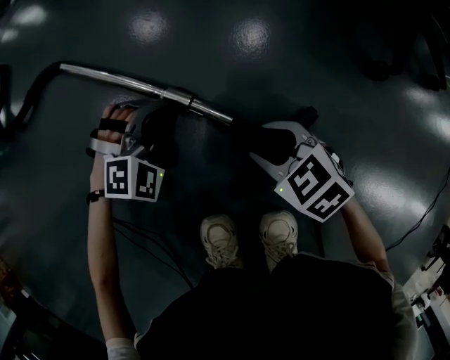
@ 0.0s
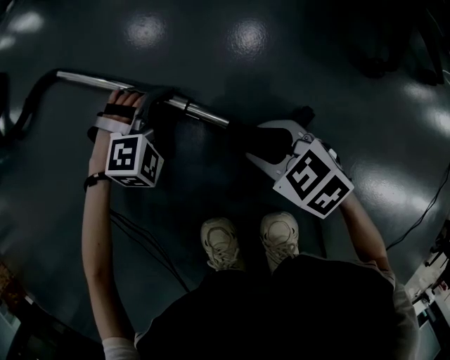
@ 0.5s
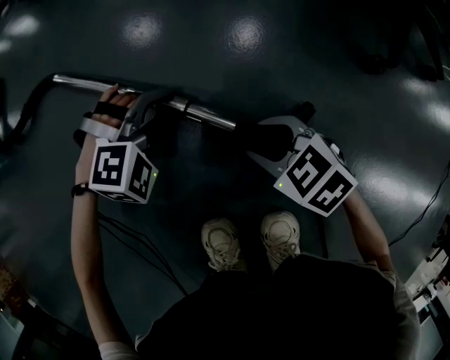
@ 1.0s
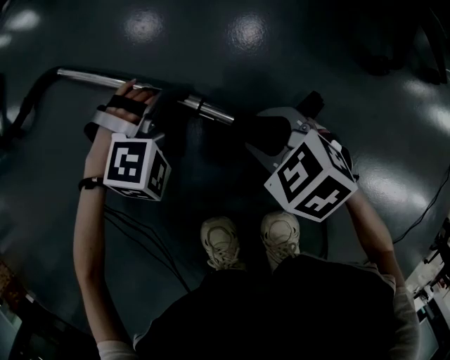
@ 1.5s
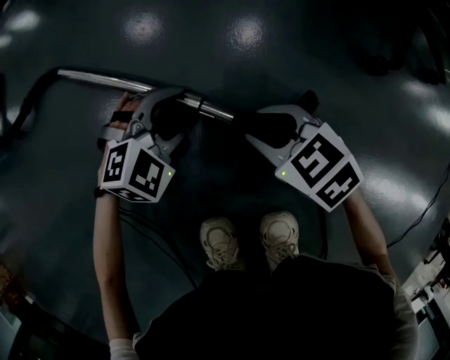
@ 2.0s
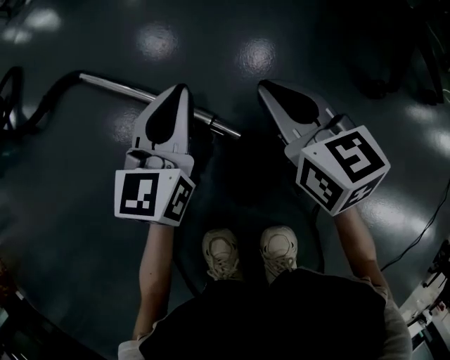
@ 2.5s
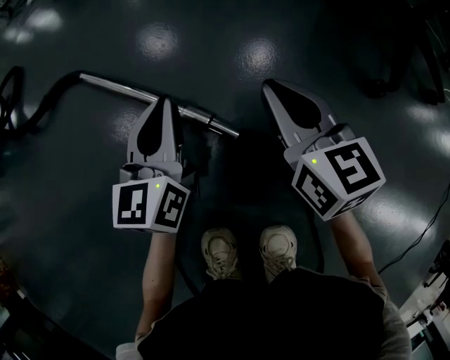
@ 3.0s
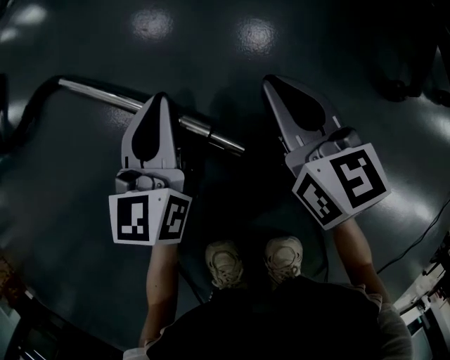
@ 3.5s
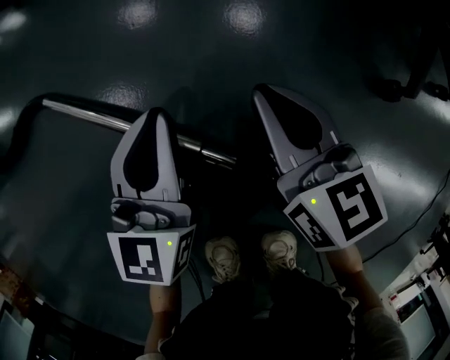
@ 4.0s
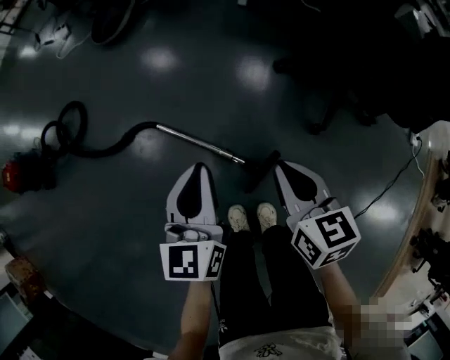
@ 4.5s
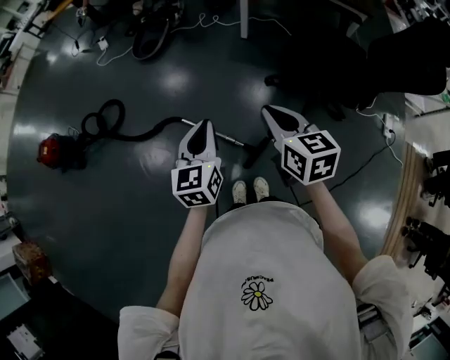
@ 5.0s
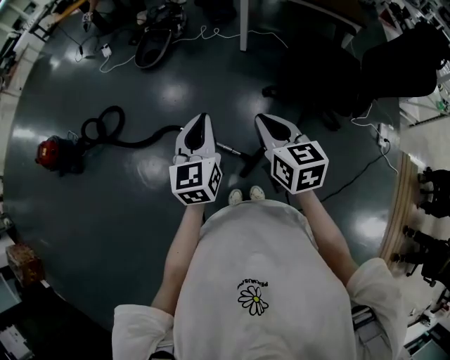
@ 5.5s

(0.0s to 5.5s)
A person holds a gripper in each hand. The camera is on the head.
0.0s - 2.0s: The left gripper opens its fingers.
2.0s - 3.5s: The left gripper goes about 10 cm upward and forward, angles its fingers upward, by roughly 30 degrees, and closes up, while the right gripper shifts about 15 cm forward and upward, rotates approximately 40 degrees, and closes its fingers.
3.5s - 5.5s: The two grippers go approximately 80 cm upward.

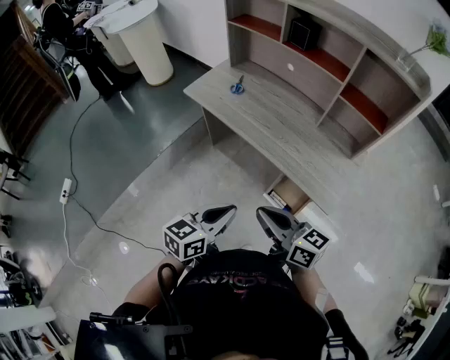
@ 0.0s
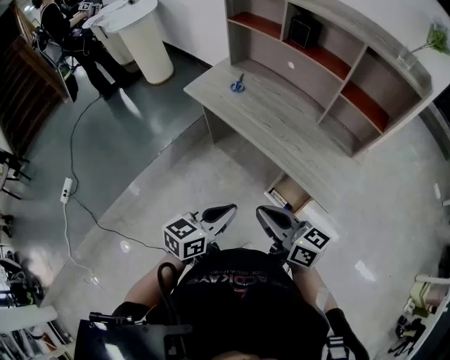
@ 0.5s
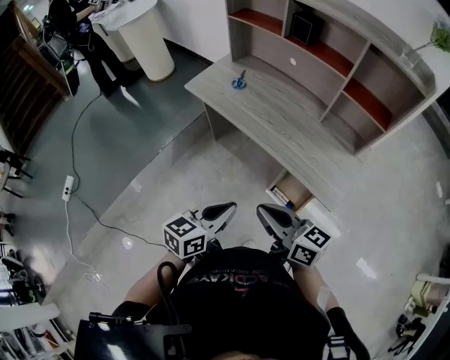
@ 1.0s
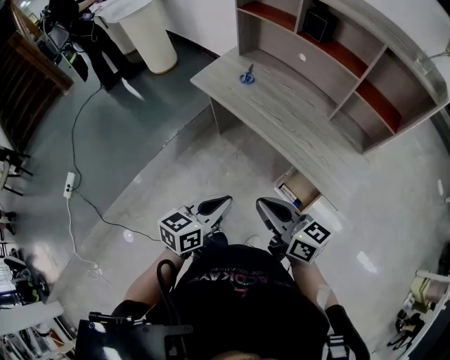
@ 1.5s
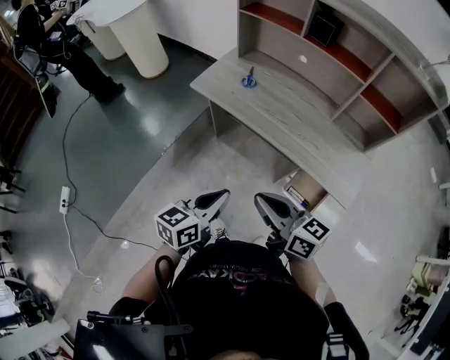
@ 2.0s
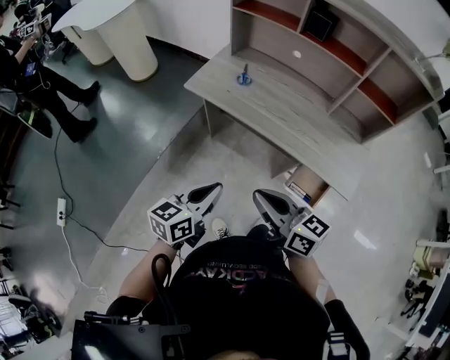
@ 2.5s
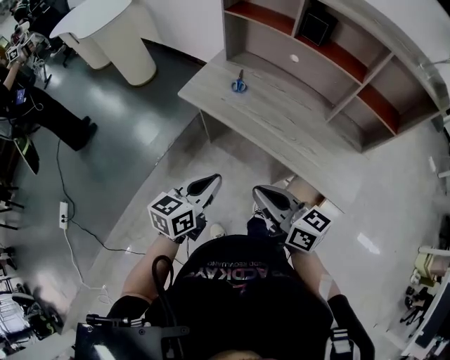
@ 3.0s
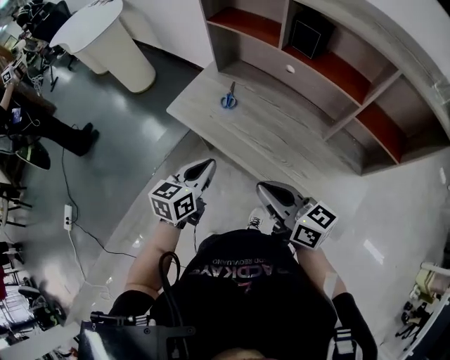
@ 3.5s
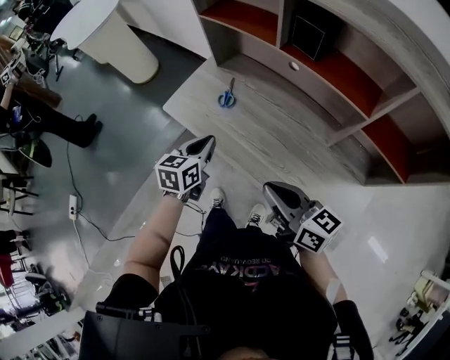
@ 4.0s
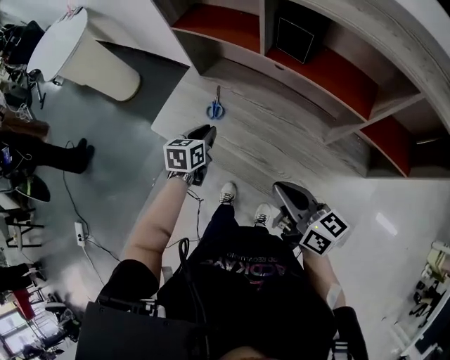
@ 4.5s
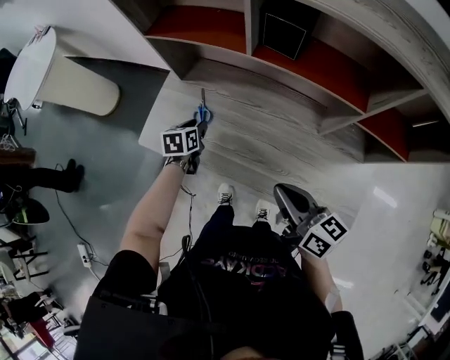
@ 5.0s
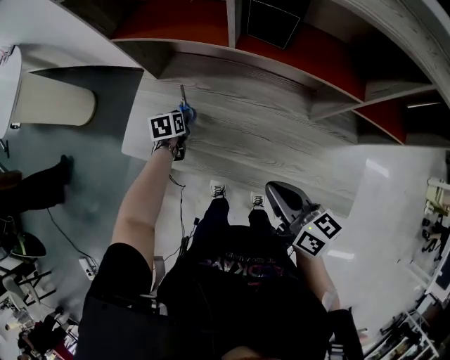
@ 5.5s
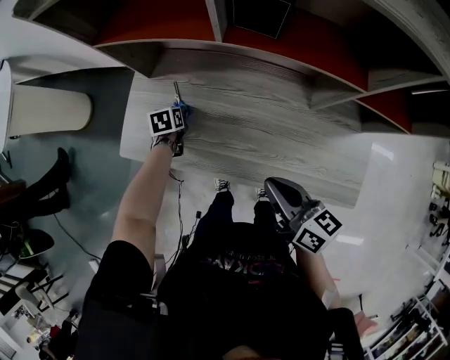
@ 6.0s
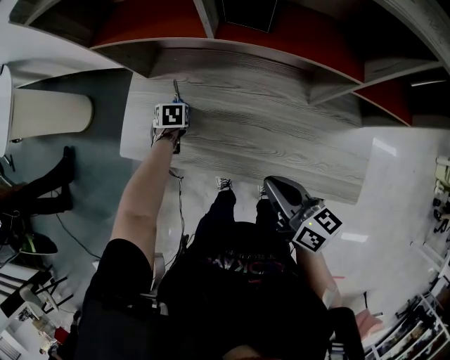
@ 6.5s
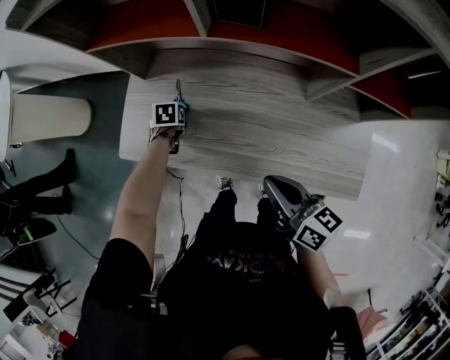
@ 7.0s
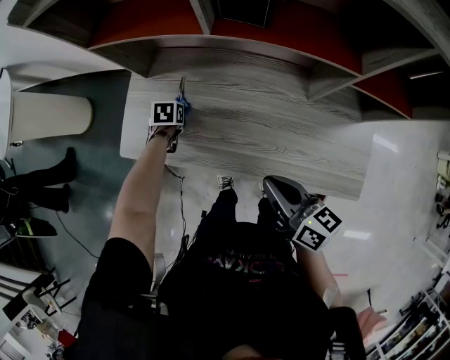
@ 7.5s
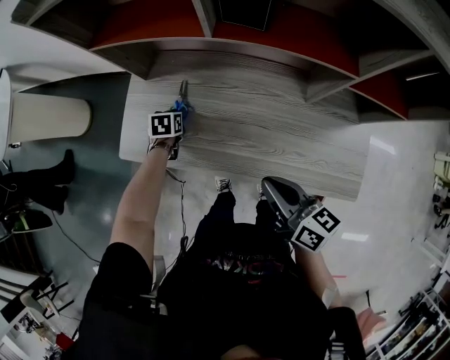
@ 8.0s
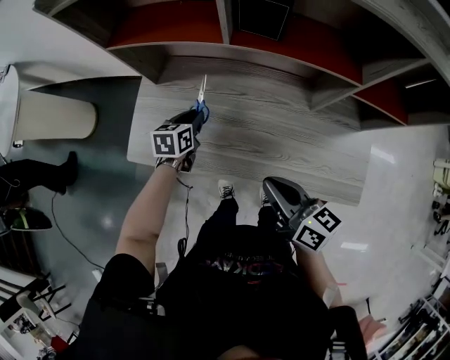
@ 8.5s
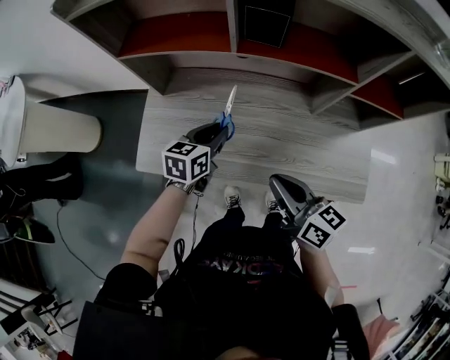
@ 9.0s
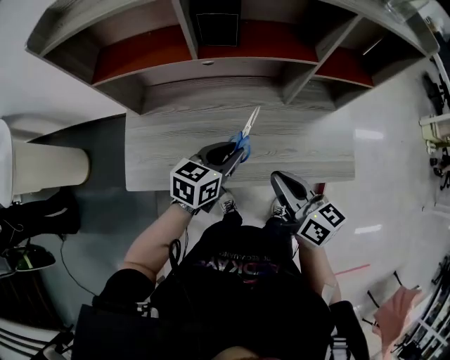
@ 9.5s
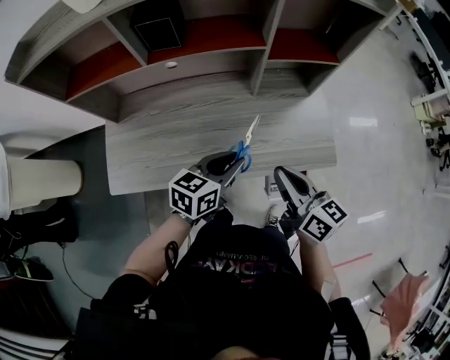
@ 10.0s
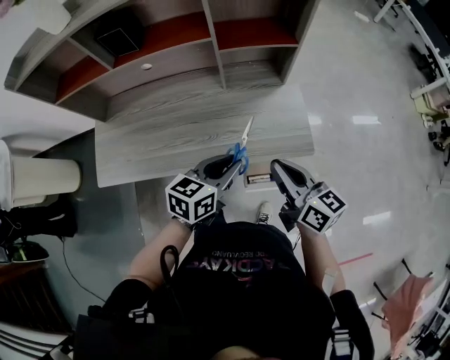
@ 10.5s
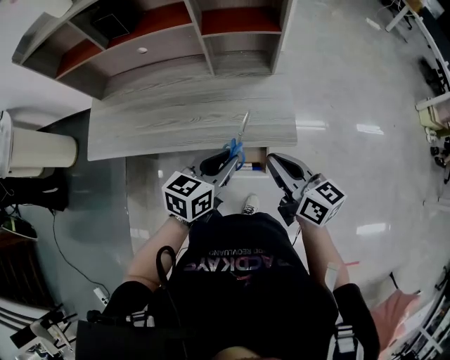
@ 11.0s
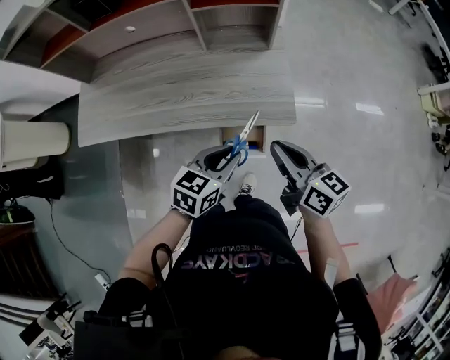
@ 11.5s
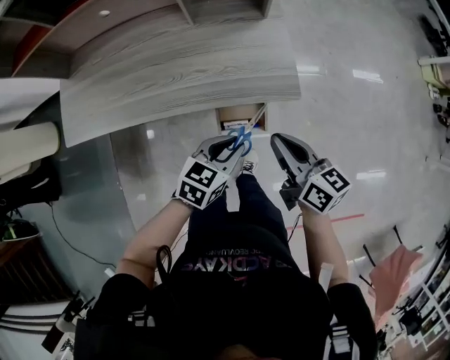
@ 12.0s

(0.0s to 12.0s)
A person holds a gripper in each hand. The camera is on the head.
0.0s - 2.0s: The two grippers go some 10 cm to the left.
2.0s - 4.0s: The left gripper shifts roughly 25 cm forward, and rotates approximately 20 degrees; the right gripper goes about 20 cm forward and to the right.
4.0s - 6.0s: The left gripper is displaced forward and downward by roughly 25 cm, tips its fingers downward by roughly 30 degrees, and opens; the right gripper changes its angle by some 30 degrees.
6.0s - 8.0s: The grippers stay close to where they were, moving slightly.
8.0s - 10.0s: The right gripper shifts by about 10 cm, and changes its angle by approximately 20 degrees, while the left gripper changes place by roughly 40 cm, and angles its fingers upward, by roughly 40 degrees.
10.0s - 12.0s: The left gripper is displaced to the right, backward and downward by approximately 20 cm, while the right gripper goes approximately 15 cm to the right and backward.

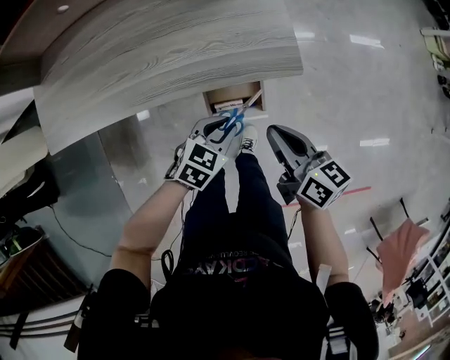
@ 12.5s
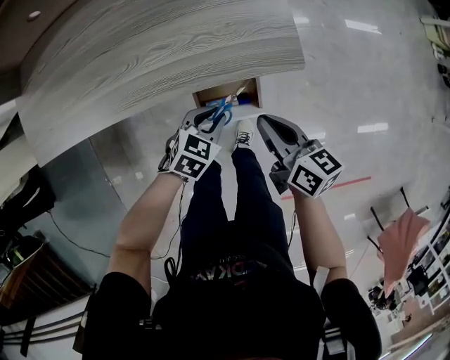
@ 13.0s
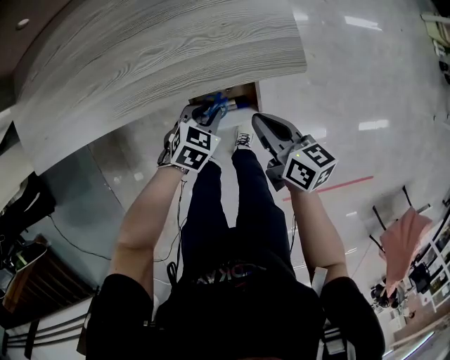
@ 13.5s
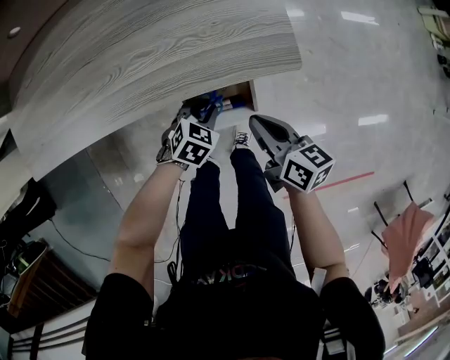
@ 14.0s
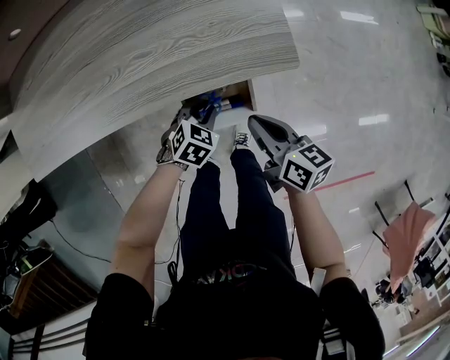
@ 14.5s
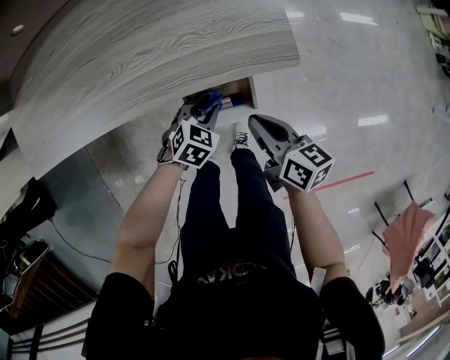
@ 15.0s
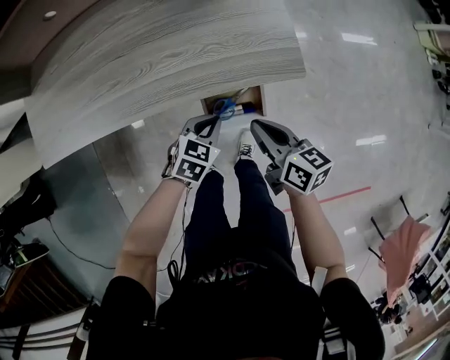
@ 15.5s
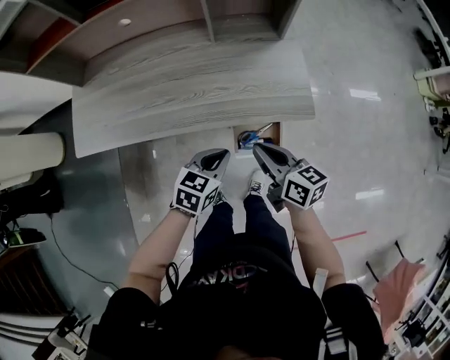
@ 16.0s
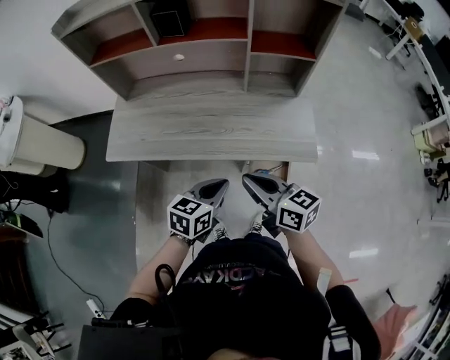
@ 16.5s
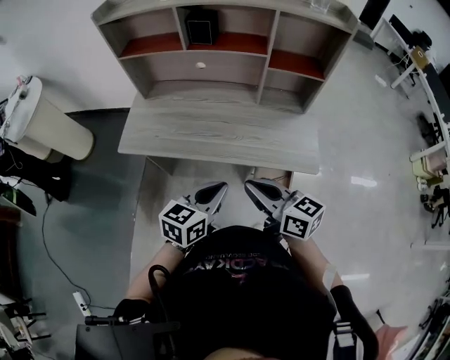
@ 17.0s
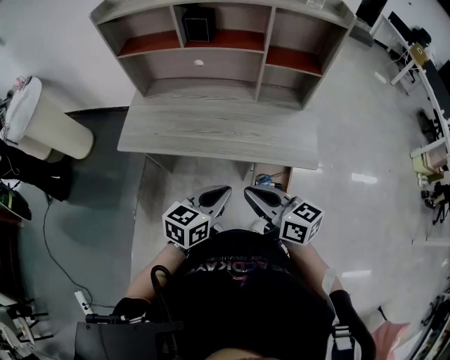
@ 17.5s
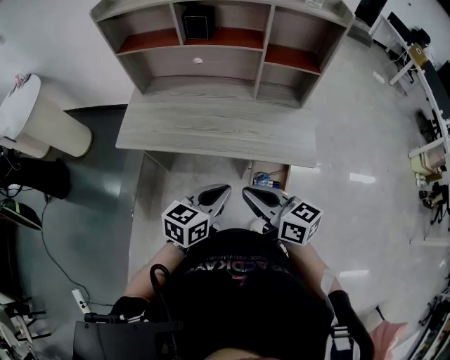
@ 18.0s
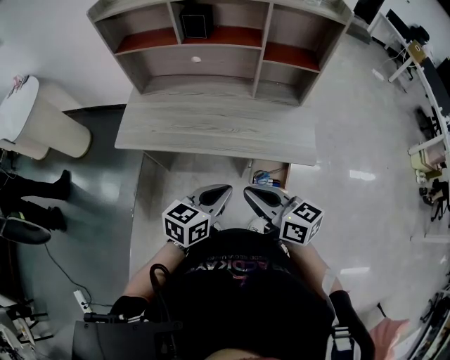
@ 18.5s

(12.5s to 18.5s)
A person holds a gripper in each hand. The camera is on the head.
12.5s - 14.5s: Both grippers move downward, roughly 10 cm.
14.5s - 16.5s: The left gripper moves upward, about 25 cm, and angles its fingers upward, by roughly 30 degrees. Meanwhile the right gripper goes approximately 20 cm upward and to the left, and rotates roughly 30 degrees.
16.5s - 18.5s: The right gripper goes some 5 cm backward, while the left gripper goes some 5 cm upward.

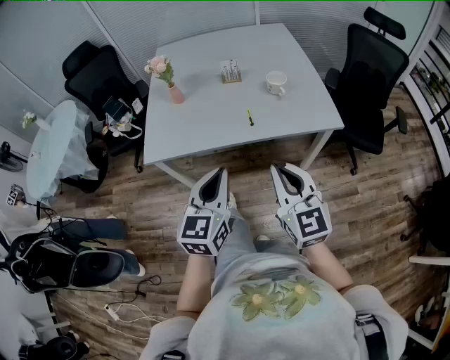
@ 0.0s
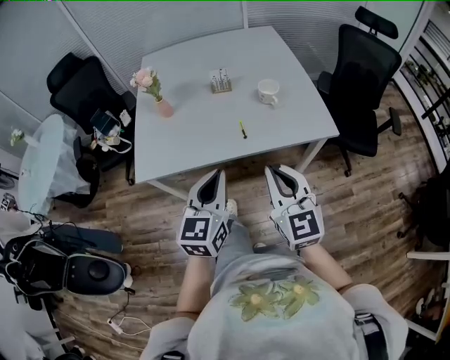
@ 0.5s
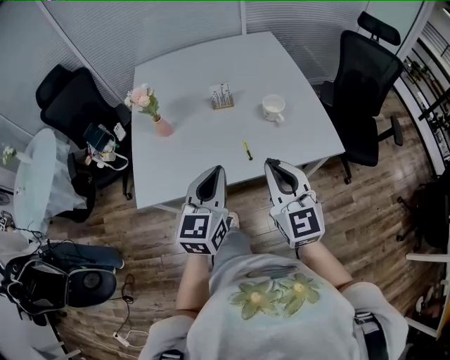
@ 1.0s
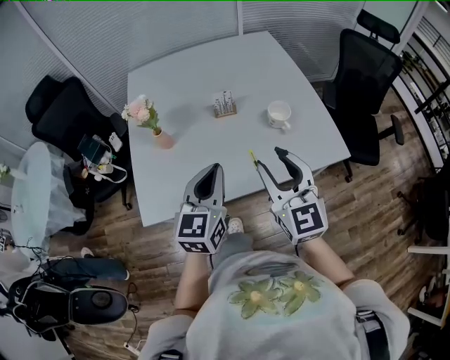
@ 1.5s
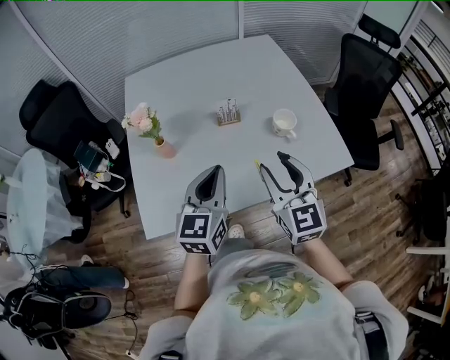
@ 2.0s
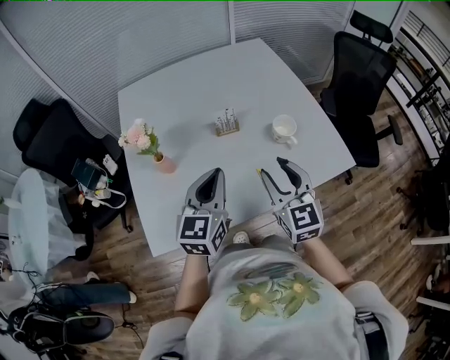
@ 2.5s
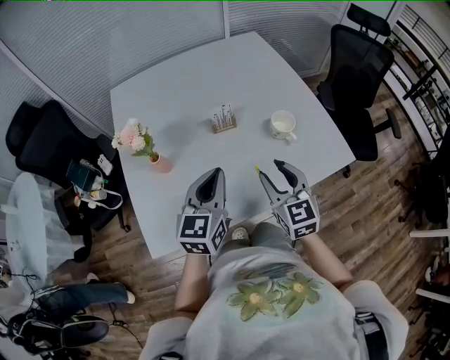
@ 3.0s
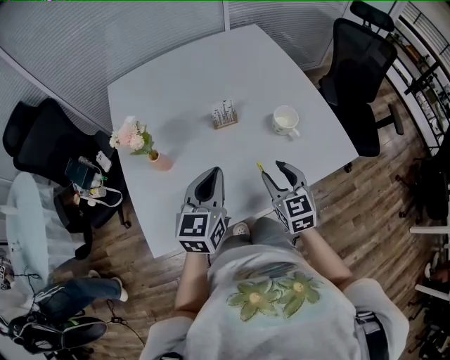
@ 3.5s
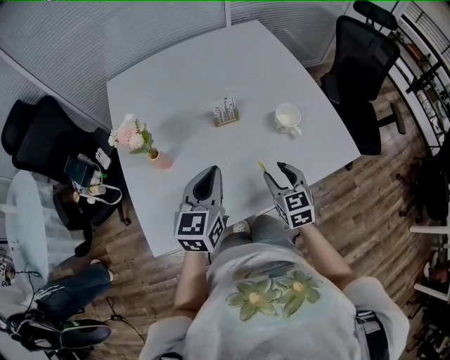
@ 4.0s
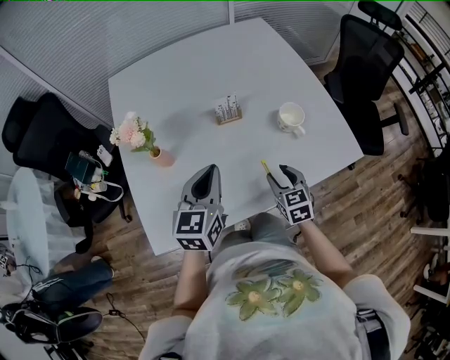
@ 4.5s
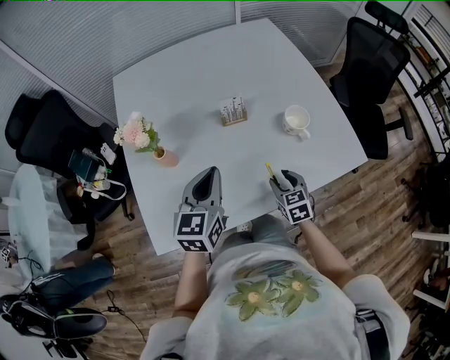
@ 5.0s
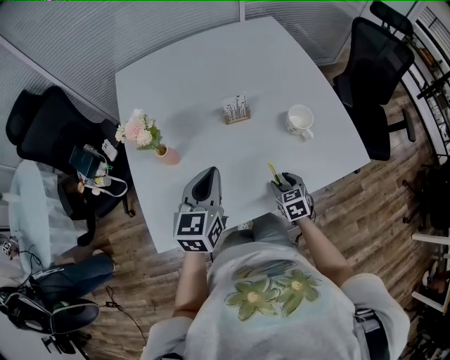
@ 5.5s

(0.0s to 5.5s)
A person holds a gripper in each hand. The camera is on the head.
0.0s - 2.0s: Both grippers move forward, about 30 cm. The right gripper opens up.
2.0s - 3.5s: The left gripper travels forward and downward by about 10 cm, while the right gripper moves downward, approximately 15 cm.
3.5s - 5.5s: The right gripper heads downward, covering about 20 cm, and changes its angle by some 20 degrees.
